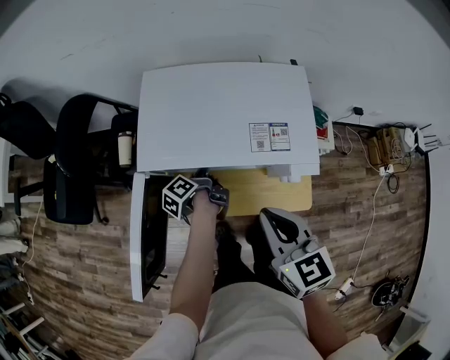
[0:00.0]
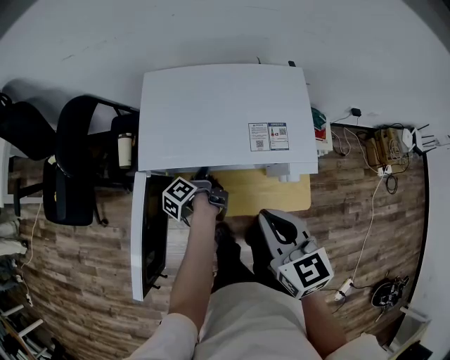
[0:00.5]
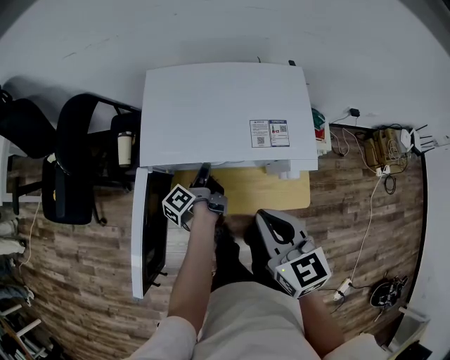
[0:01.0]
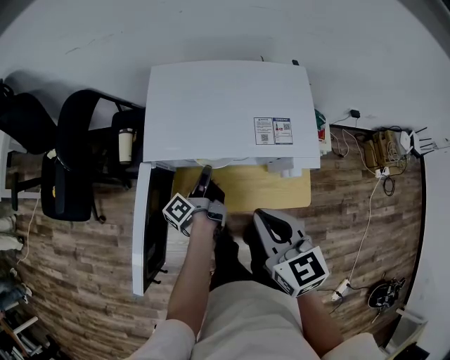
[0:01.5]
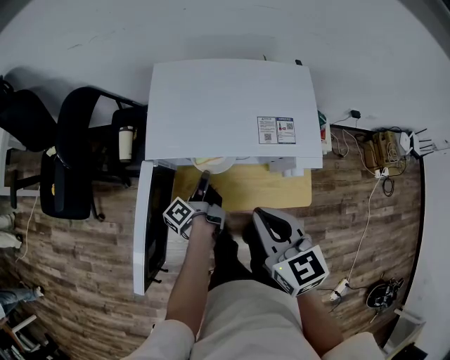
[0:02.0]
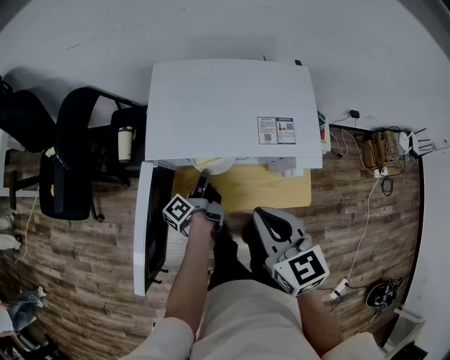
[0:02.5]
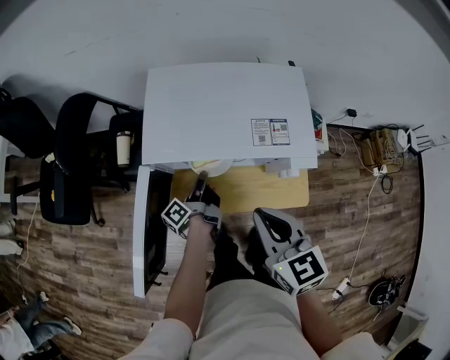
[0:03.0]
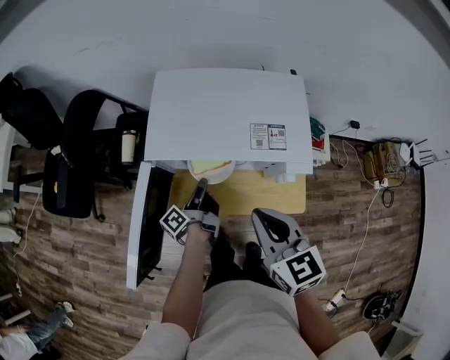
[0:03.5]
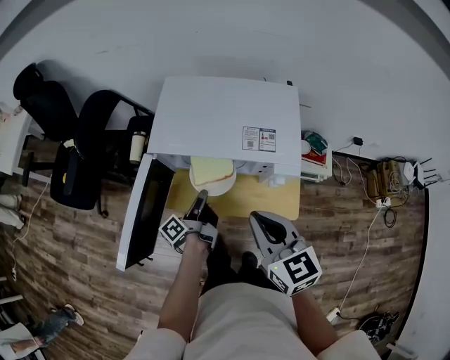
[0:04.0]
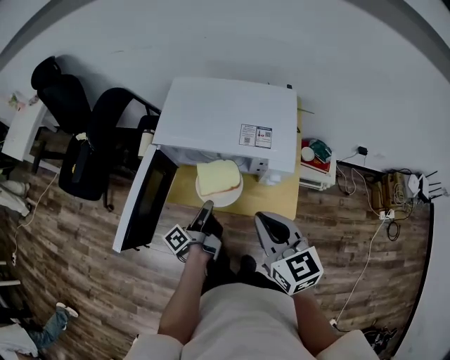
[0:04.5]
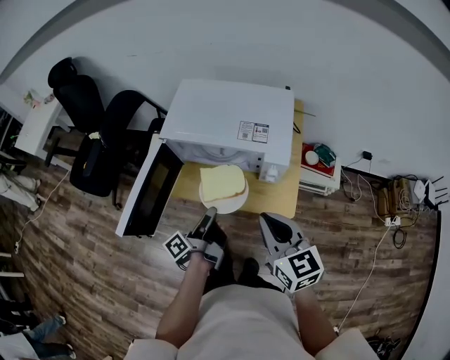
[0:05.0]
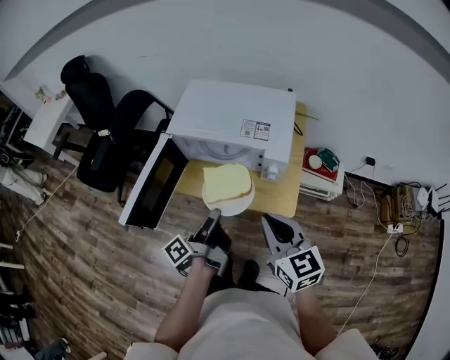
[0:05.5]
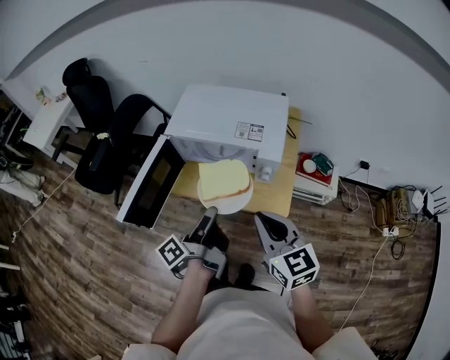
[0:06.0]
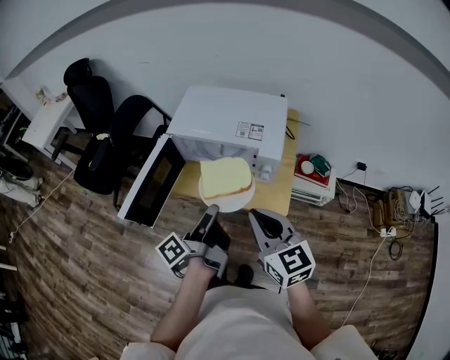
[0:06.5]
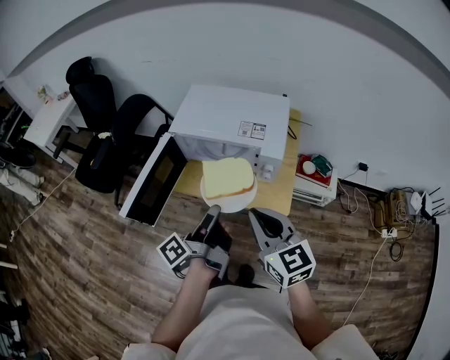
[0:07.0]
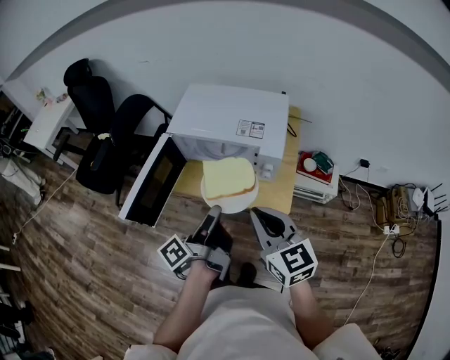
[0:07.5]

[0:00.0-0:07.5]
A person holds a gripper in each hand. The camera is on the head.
0:00.0 to 0:02.0: The left gripper moves roughly 5 cm, and turns by approximately 20 degrees.
0:02.0 to 0:04.0: The left gripper travels backward by approximately 5 cm; the right gripper shifts by about 5 cm.
0:04.0 to 0:05.5: The left gripper travels backward and upward by about 20 cm, while the right gripper goes approximately 10 cm backward and to the right.
0:05.5 to 0:07.5: The left gripper goes some 5 cm upward.

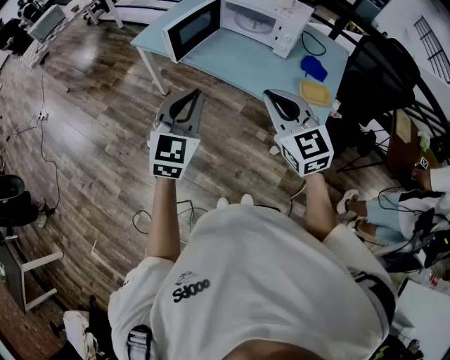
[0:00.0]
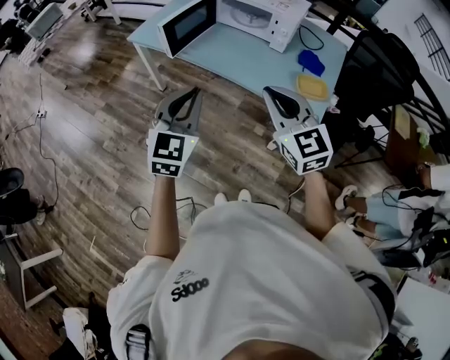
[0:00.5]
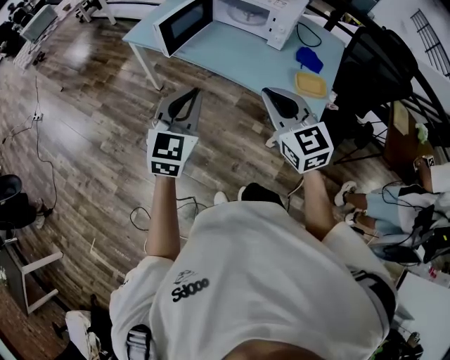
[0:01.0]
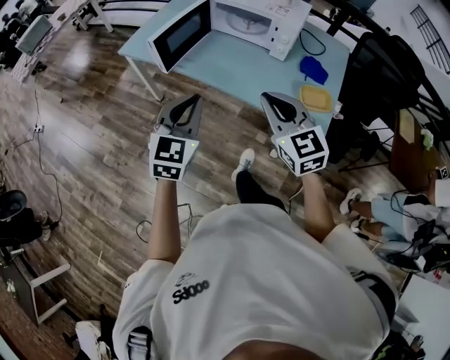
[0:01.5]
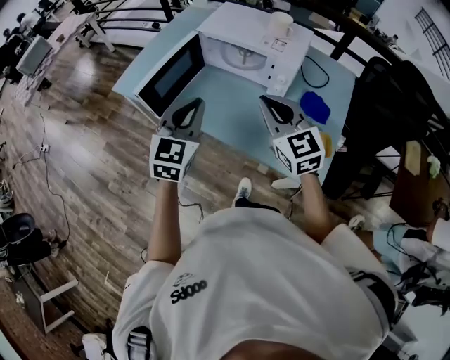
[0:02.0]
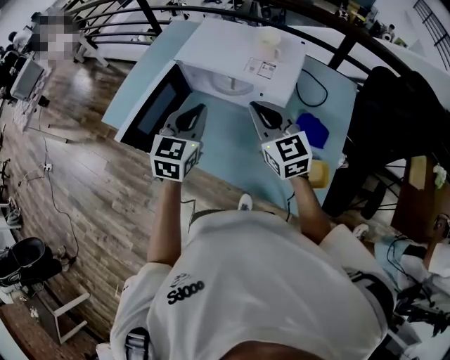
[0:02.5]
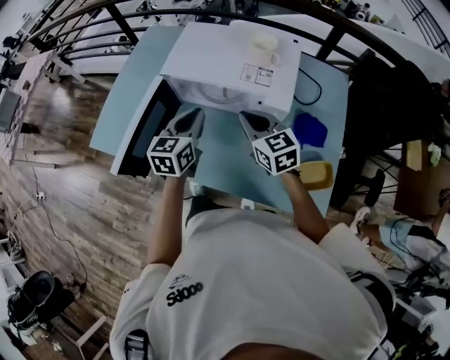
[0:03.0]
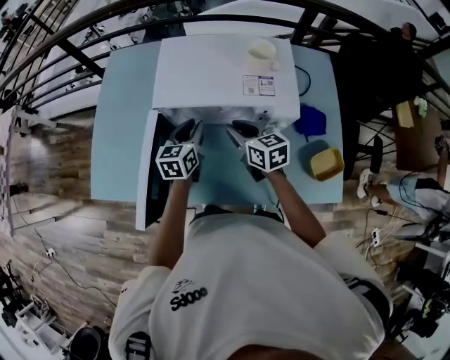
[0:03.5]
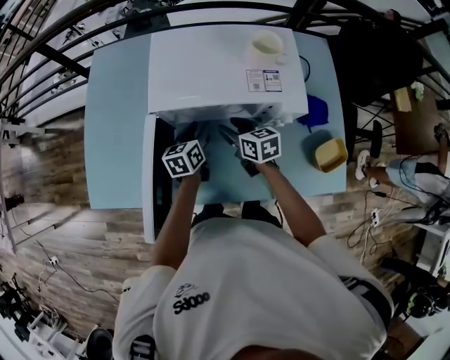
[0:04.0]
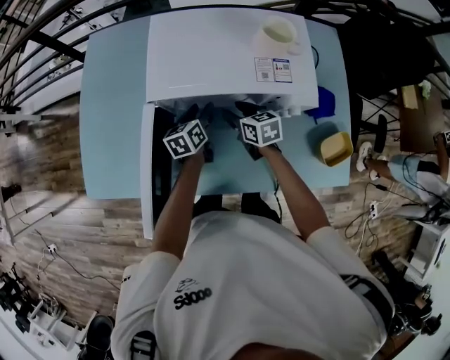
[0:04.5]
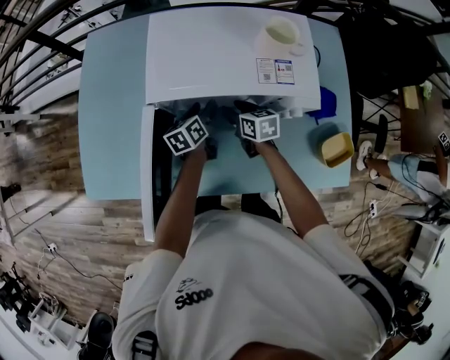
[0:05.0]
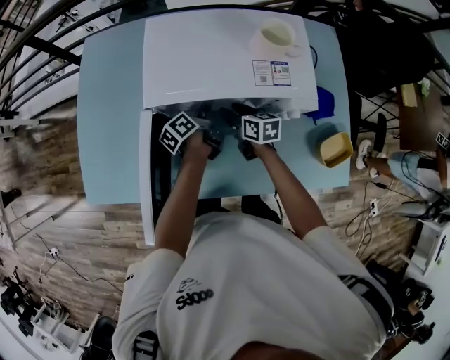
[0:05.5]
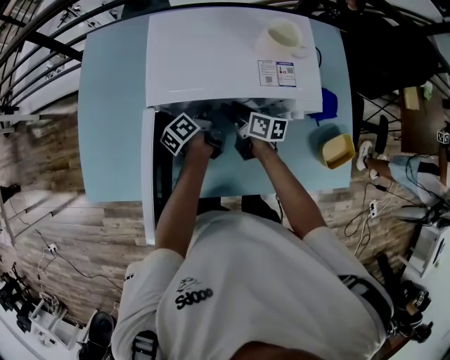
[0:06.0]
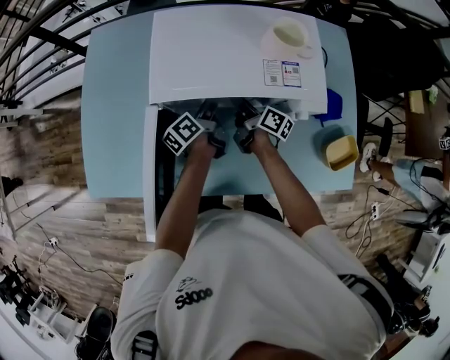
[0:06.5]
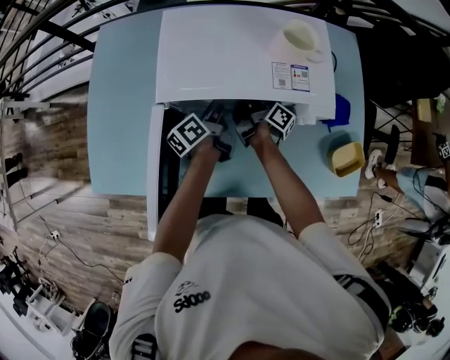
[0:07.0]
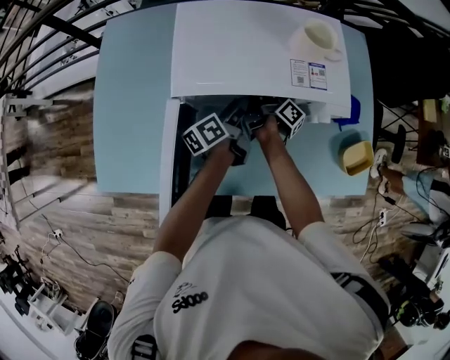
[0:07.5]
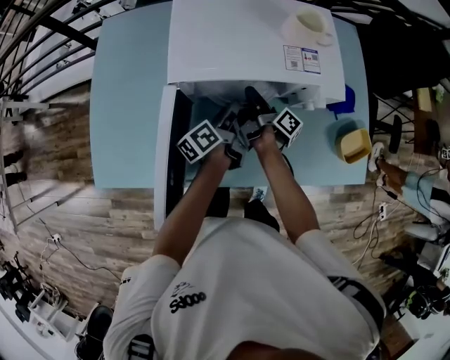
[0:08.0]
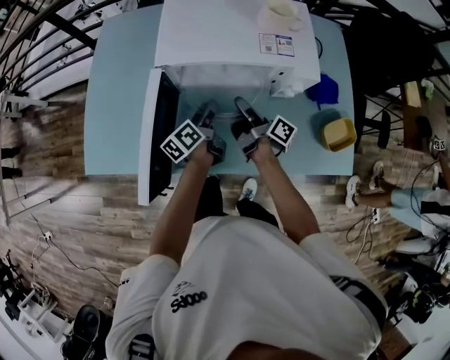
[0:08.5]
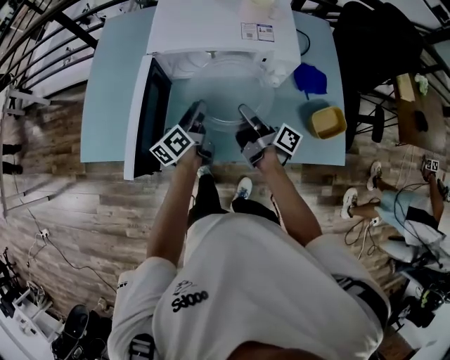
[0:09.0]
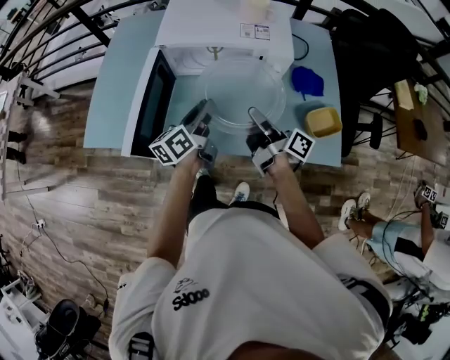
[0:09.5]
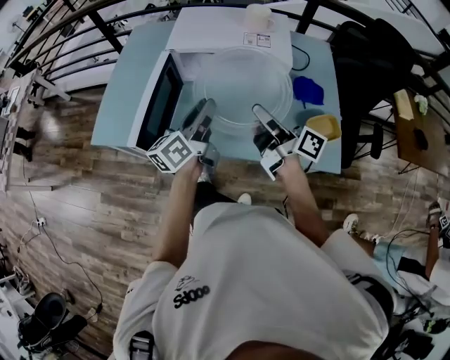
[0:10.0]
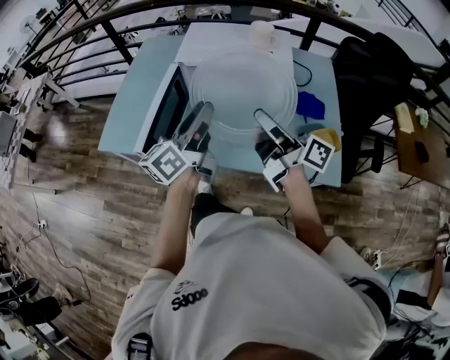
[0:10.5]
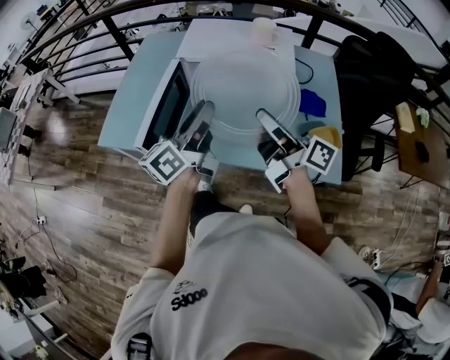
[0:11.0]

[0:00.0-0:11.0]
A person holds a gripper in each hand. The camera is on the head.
0:00.0 to 0:02.0: Both grippers move forward, some 30 cm.
0:02.0 to 0:03.5: The two grippers go roughly 35 cm forward and downward. The right gripper turns by about 40 degrees; the left gripper changes its angle by roughly 40 degrees, and opens up.
0:03.5 to 0:05.5: Both grippers move downward and forward, about 15 cm. The right gripper opens up; the left gripper rolls counterclockwise, seen from behind, by some 60 degrees, and opens.
0:05.5 to 0:07.5: The right gripper heads forward, covering about 5 cm, rolls clockwise, seen from behind, by about 60 degrees, and closes.
0:07.5 to 0:09.0: Both grippers travel together backward, about 20 cm.
0:09.0 to 0:11.0: The two grippers go roughly 25 cm upward and backward. The right gripper rotates about 30 degrees. The left gripper rotates about 20 degrees.

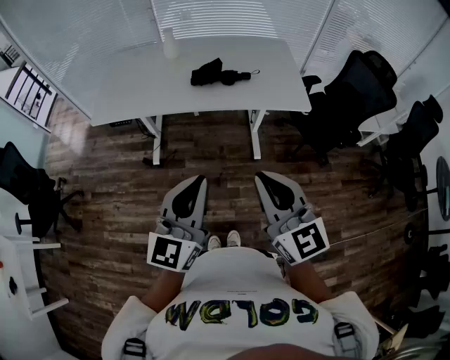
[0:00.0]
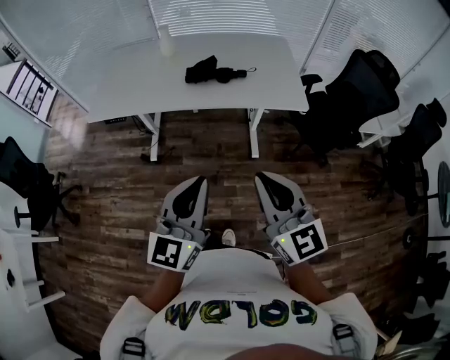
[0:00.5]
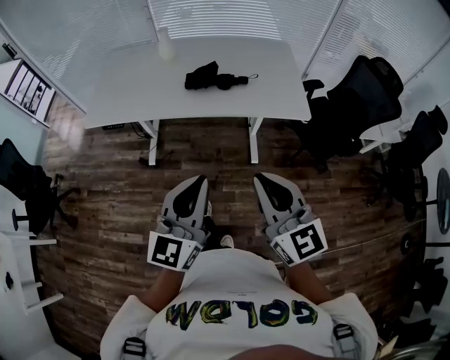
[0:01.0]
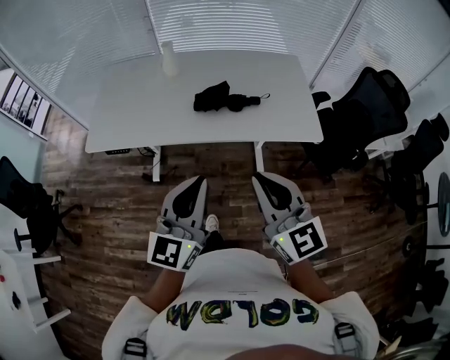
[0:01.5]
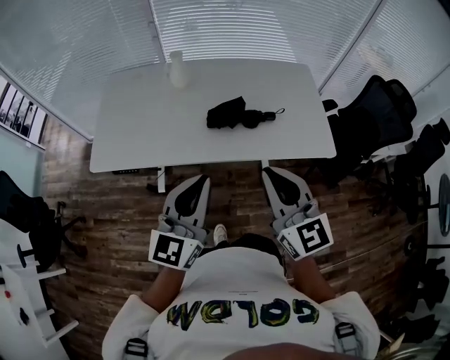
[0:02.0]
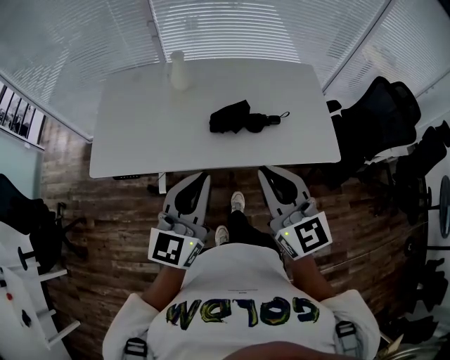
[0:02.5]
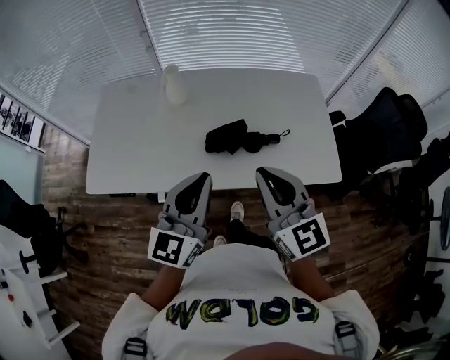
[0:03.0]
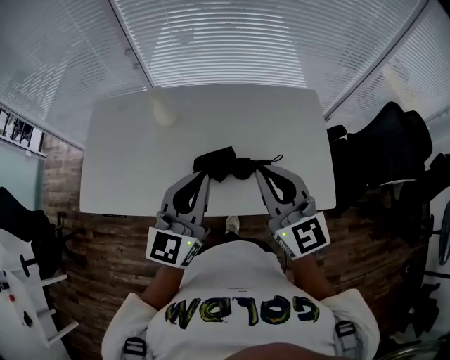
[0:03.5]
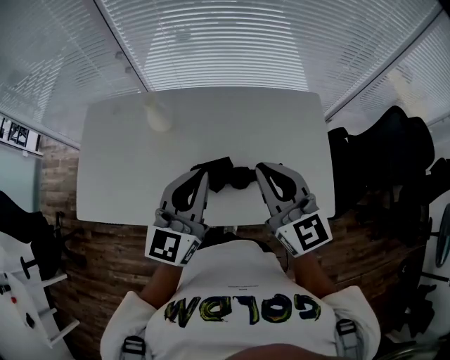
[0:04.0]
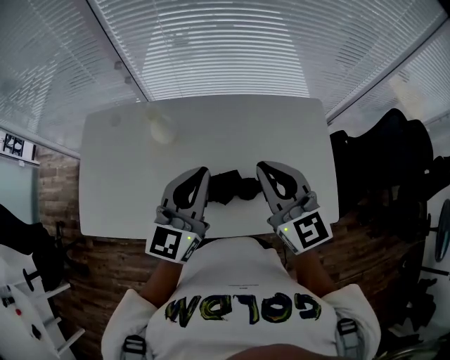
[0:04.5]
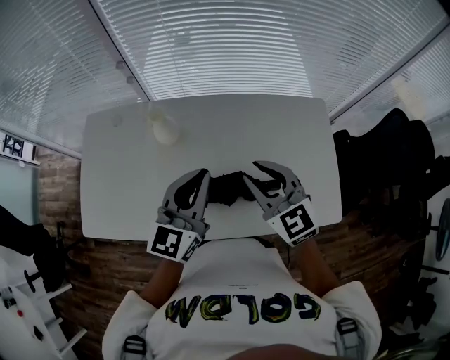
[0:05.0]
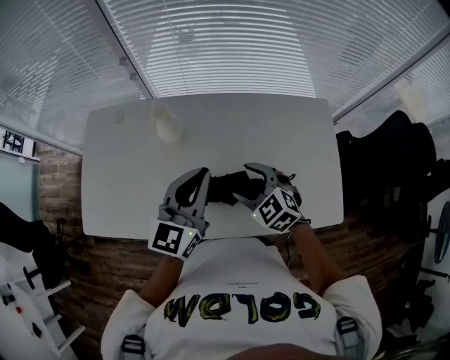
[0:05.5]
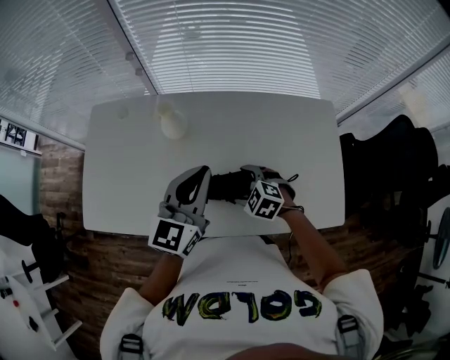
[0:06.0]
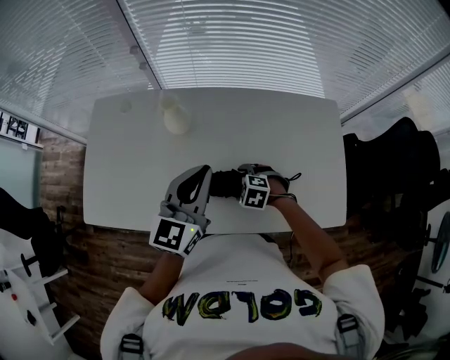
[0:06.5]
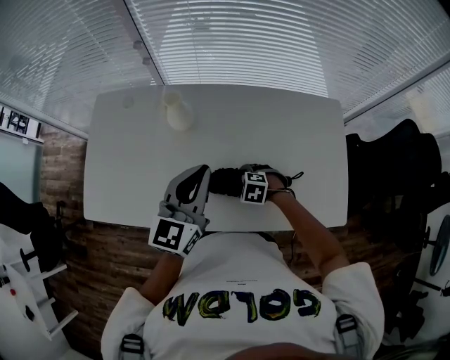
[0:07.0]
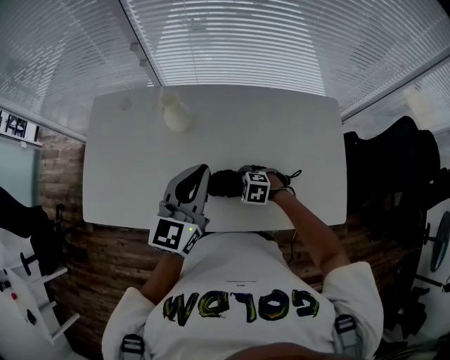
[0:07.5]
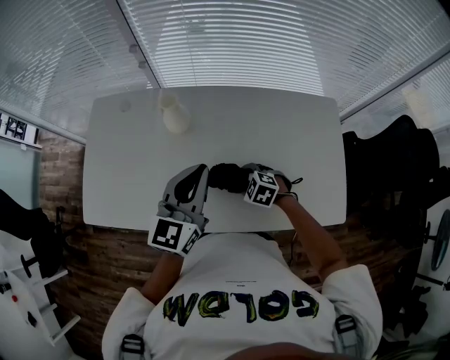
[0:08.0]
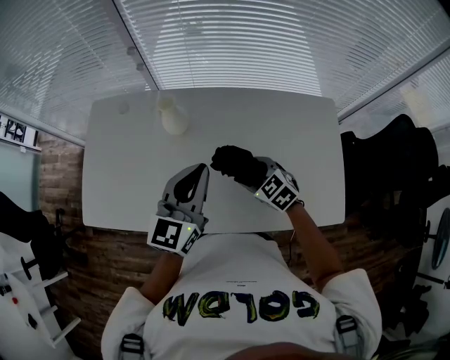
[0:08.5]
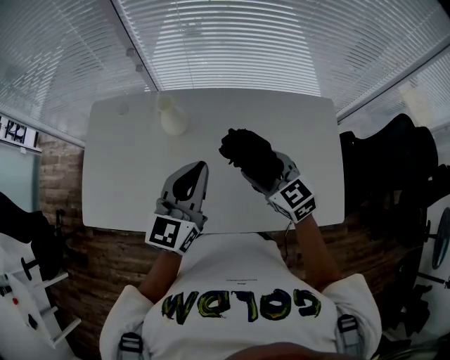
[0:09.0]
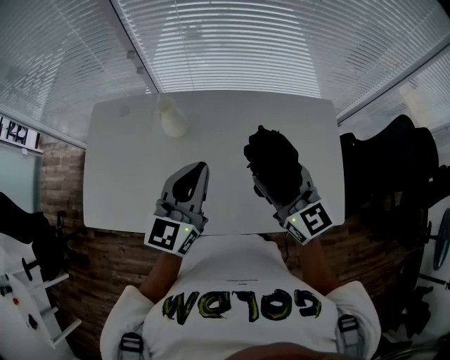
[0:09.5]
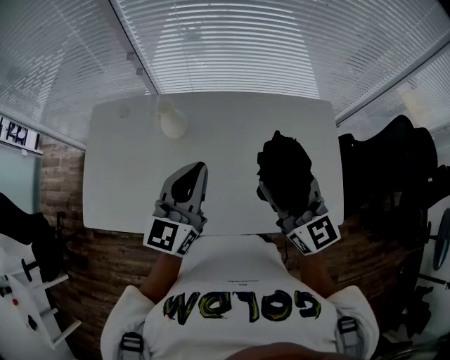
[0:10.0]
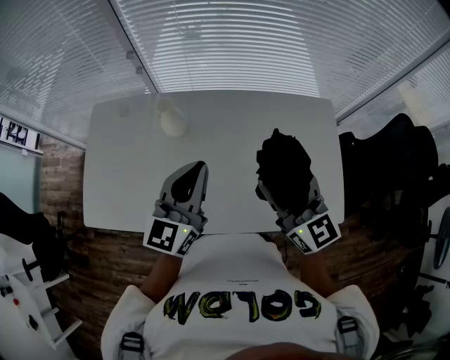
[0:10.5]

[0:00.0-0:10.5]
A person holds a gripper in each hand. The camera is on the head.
0:00.0 to 0:02.0: The grippers both shift forward by some 30 cm.
0:02.0 to 0:04.0: Both grippers move forward, approximately 30 cm.
0:04.0 to 0:06.5: The left gripper is displaced forward and to the left by approximately 10 cm; the right gripper goes approximately 35 cm downward, tips its fingers downward by approximately 70 degrees, and opens its fingers.
0:06.5 to 0:08.5: The right gripper shifts roughly 10 cm upward, changes its angle by roughly 30 degrees, and closes its fingers.
0:08.5 to 0:10.5: The right gripper travels upward by roughly 25 cm, and angles its fingers upward, by approximately 40 degrees.
